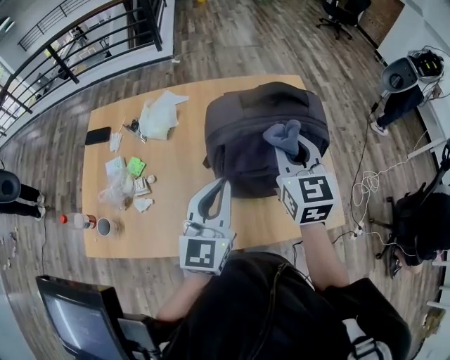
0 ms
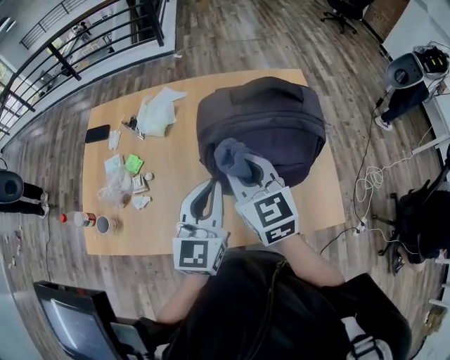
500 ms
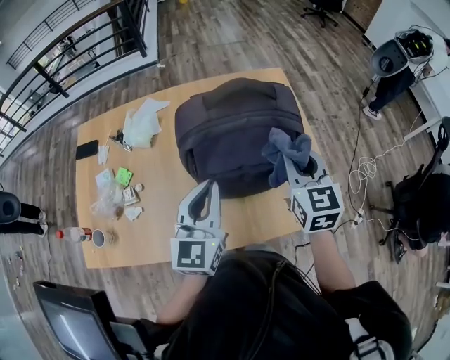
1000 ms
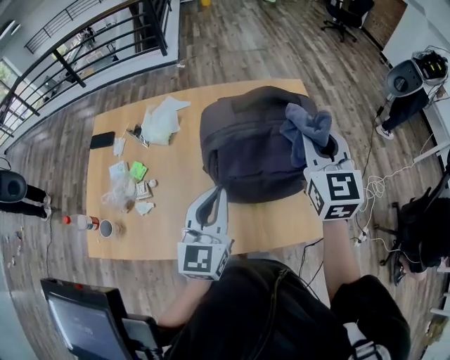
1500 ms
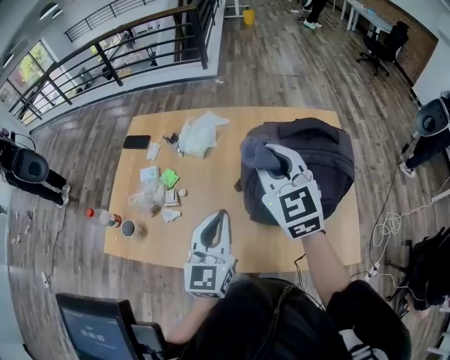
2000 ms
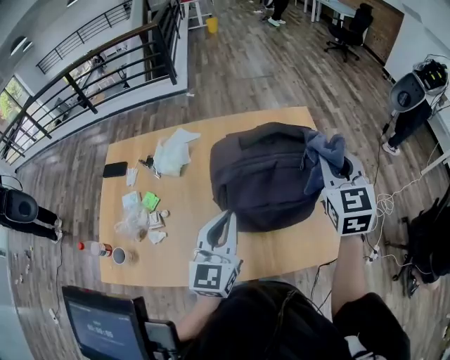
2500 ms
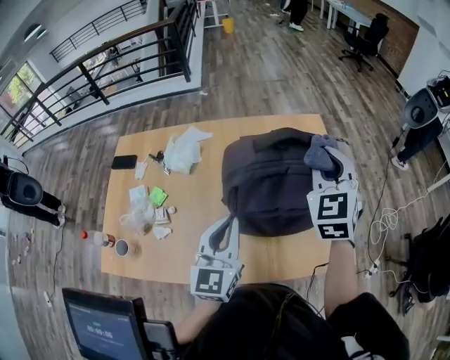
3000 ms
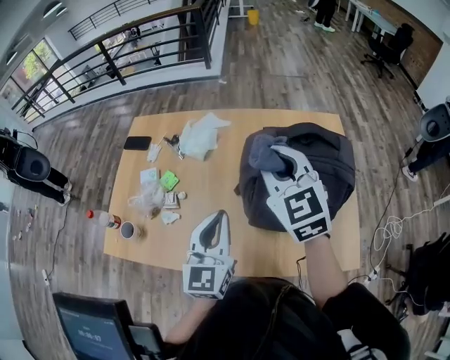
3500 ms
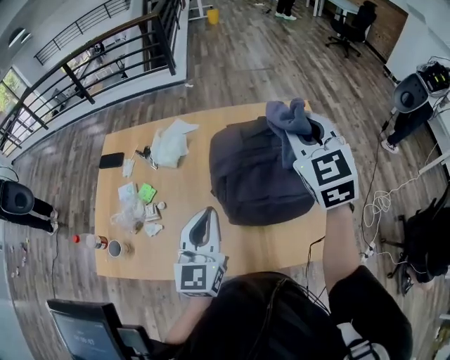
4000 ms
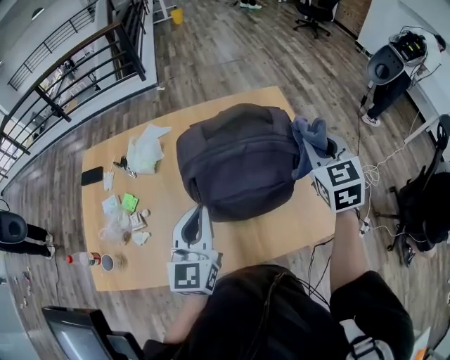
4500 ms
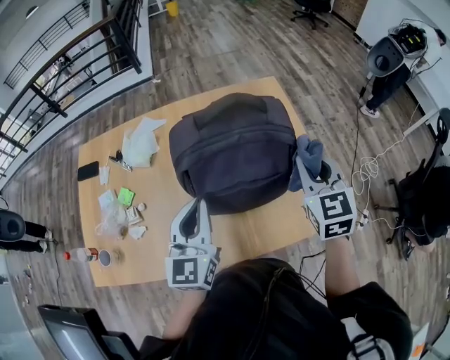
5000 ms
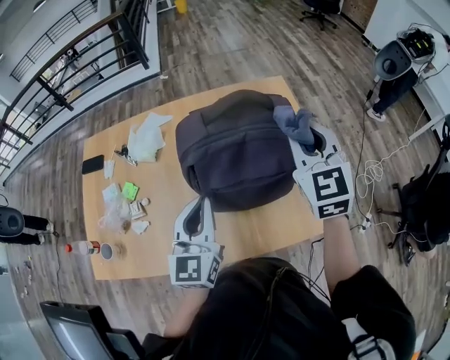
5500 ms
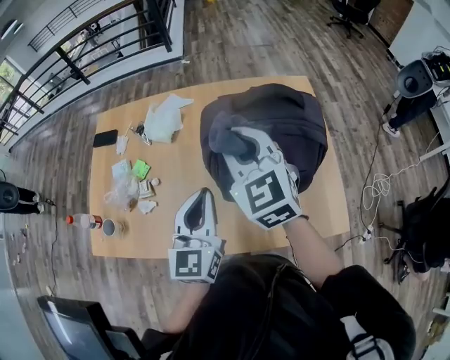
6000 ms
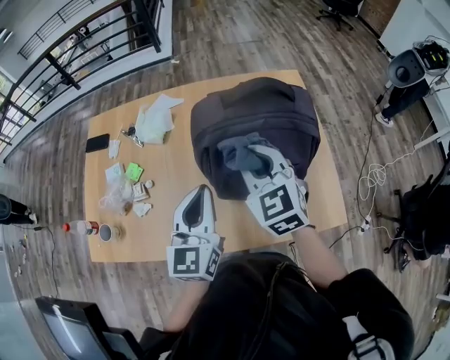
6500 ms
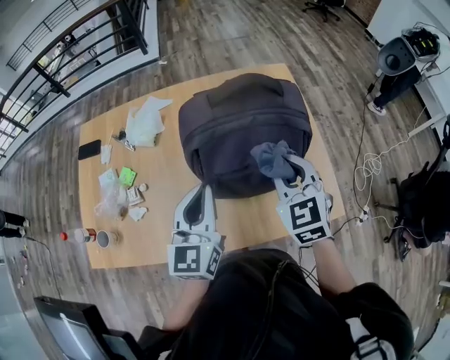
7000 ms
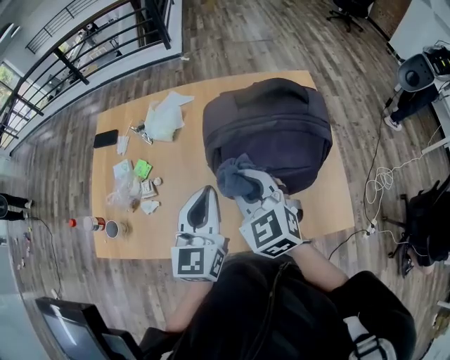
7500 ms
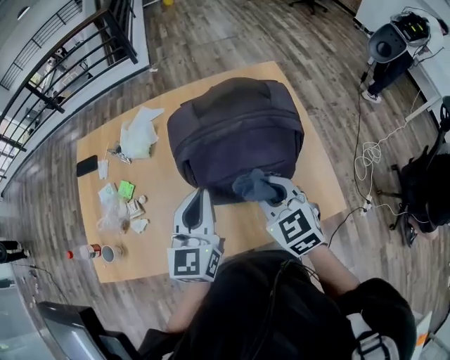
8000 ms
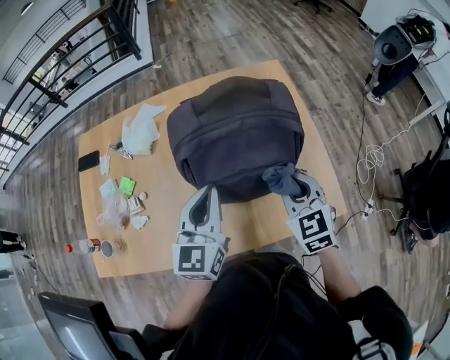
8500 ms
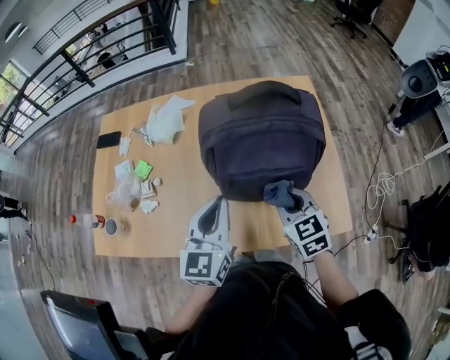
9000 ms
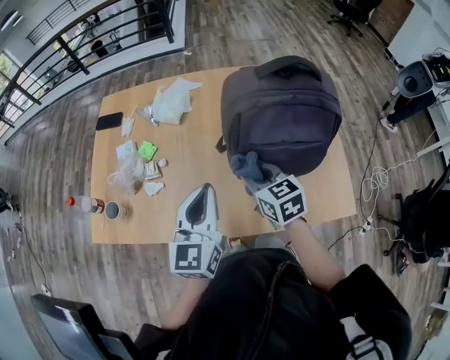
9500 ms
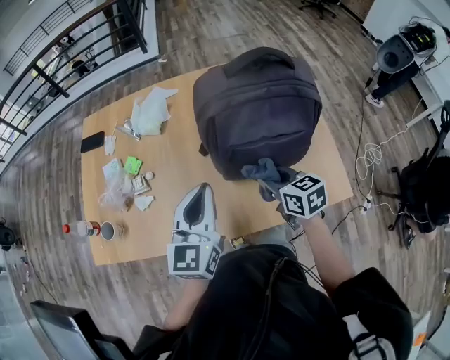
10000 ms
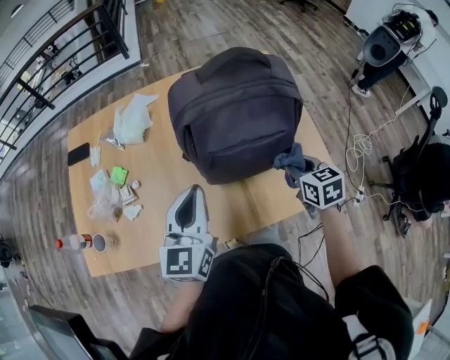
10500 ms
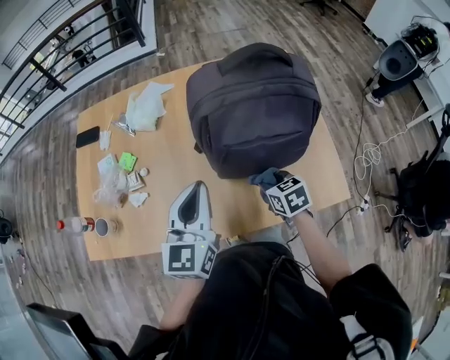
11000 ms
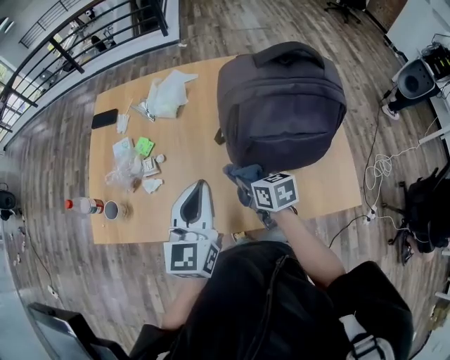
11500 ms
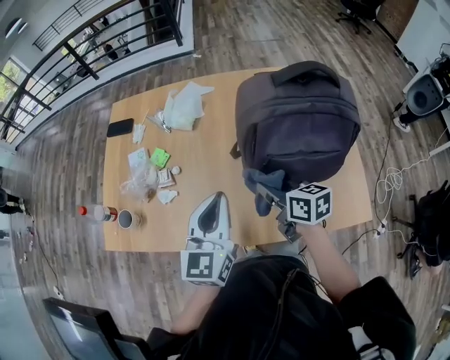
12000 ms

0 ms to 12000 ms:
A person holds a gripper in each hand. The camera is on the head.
0 ms to 2000 ms: The right gripper swings left and right, approximately 25 cm each way, with 2 reversals, and rotates approximately 30 degrees. Meanwhile the left gripper goes some 5 cm to the left.
2000 ms to 4000 ms: The right gripper swings left and right, some 25 cm each way, with 2 reversals.
4000 ms to 6000 ms: The right gripper heads to the left, backward and downward, covering some 15 cm.
6000 ms to 8000 ms: The left gripper changes place by approximately 5 cm. Meanwhile the right gripper moves left and right over roughly 15 cm, changing direction 2 times.
8000 ms to 10000 ms: The left gripper is displaced to the left and backward by roughly 10 cm; the right gripper swings left and right, roughly 20 cm each way, with 2 reversals, and rotates about 30 degrees.
10000 ms to 12000 ms: The right gripper is displaced to the left by some 10 cm.

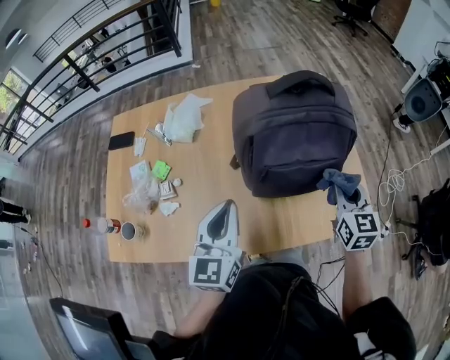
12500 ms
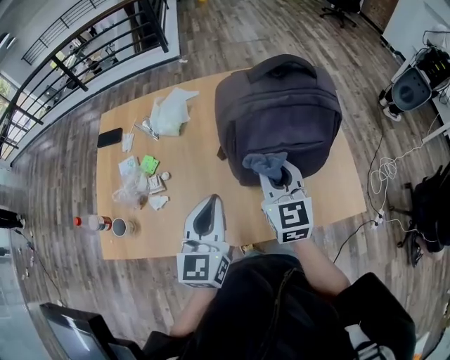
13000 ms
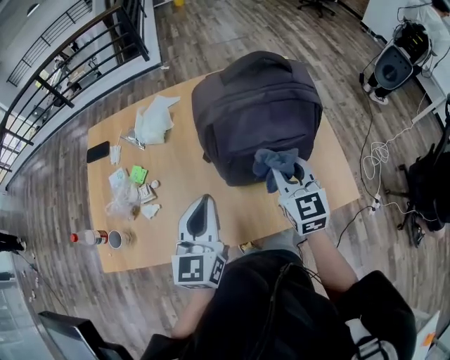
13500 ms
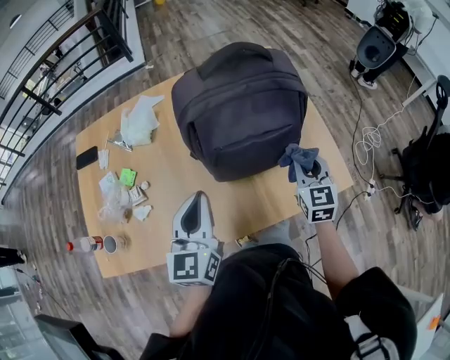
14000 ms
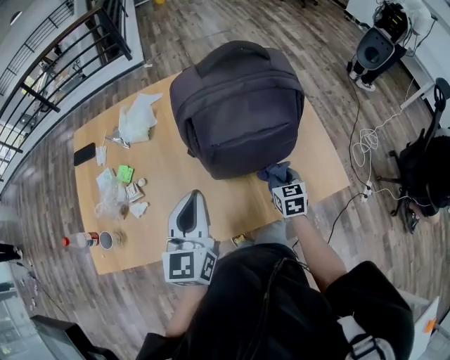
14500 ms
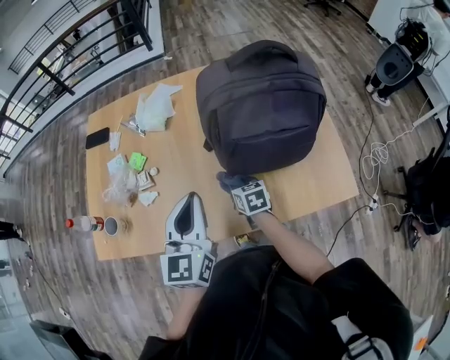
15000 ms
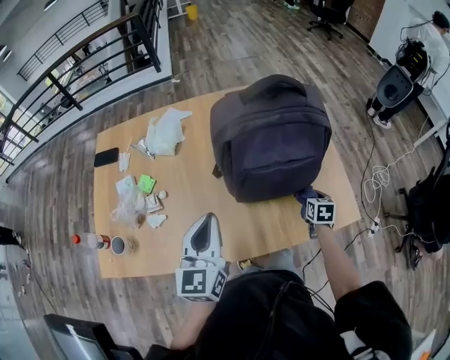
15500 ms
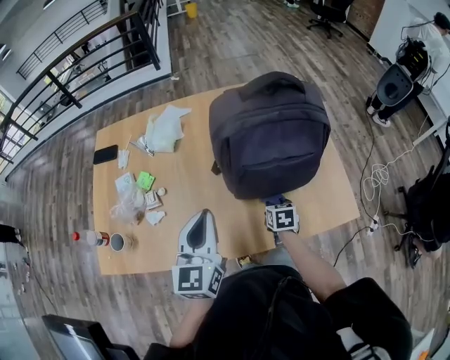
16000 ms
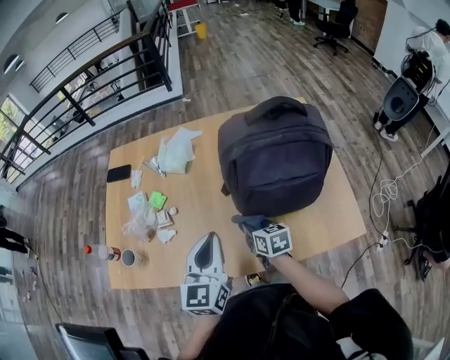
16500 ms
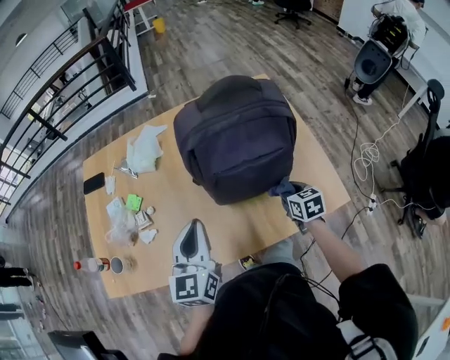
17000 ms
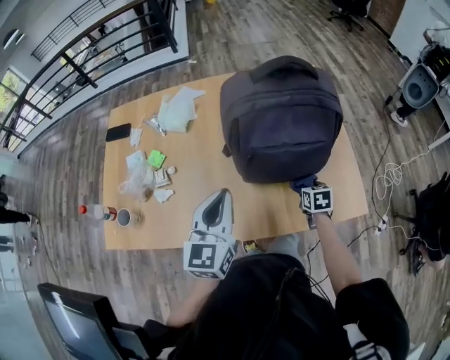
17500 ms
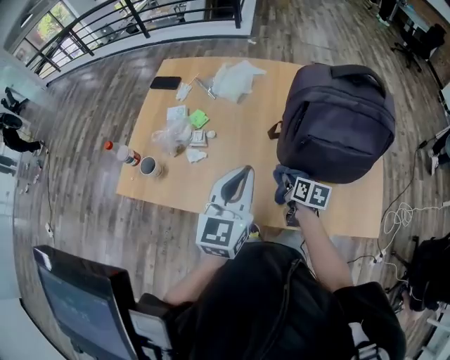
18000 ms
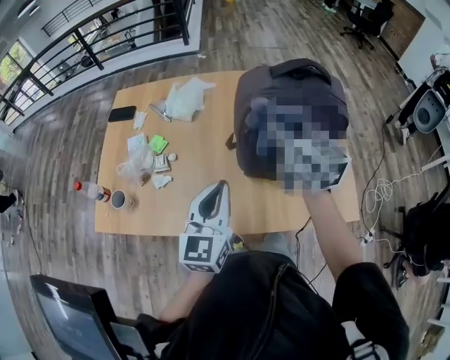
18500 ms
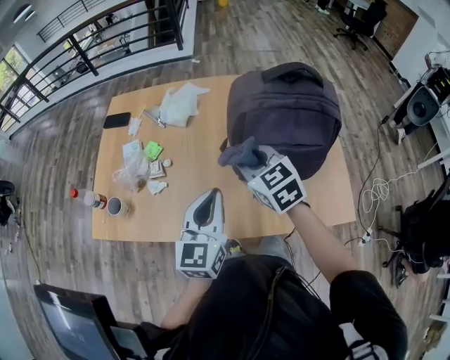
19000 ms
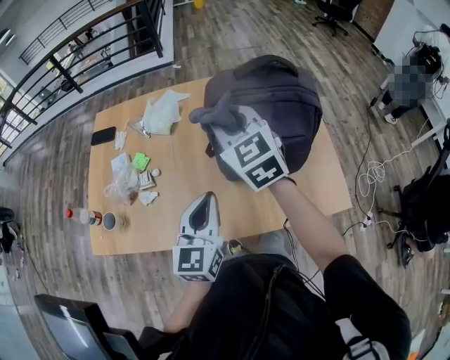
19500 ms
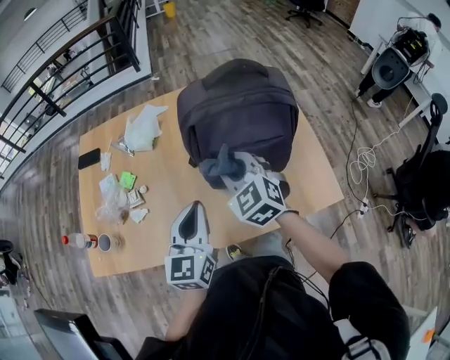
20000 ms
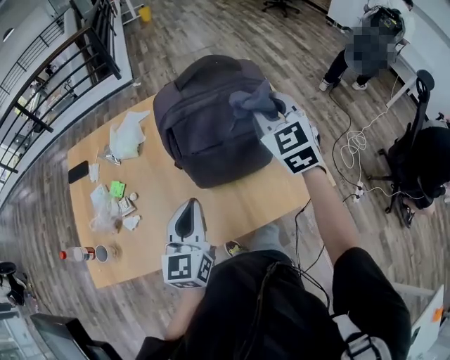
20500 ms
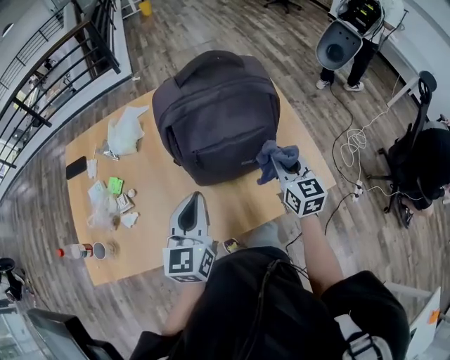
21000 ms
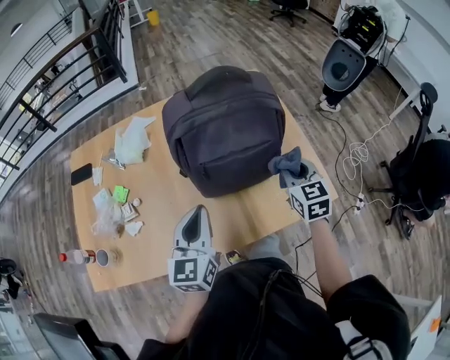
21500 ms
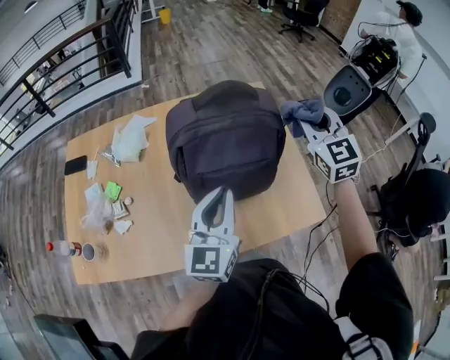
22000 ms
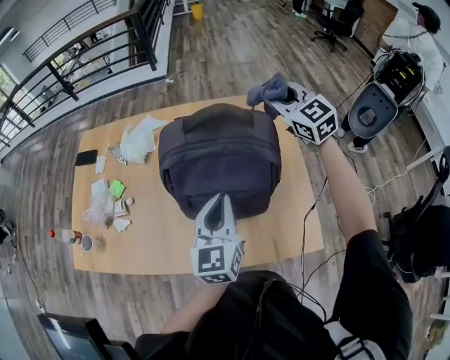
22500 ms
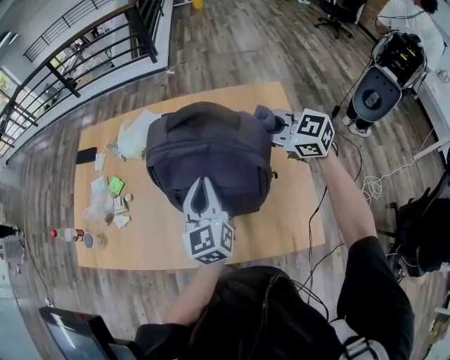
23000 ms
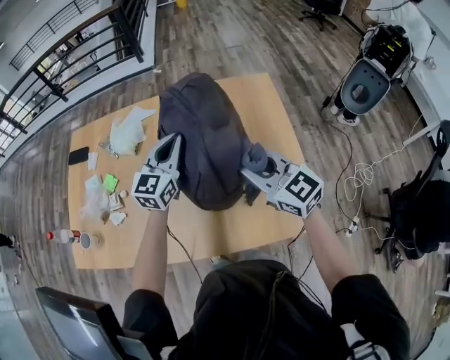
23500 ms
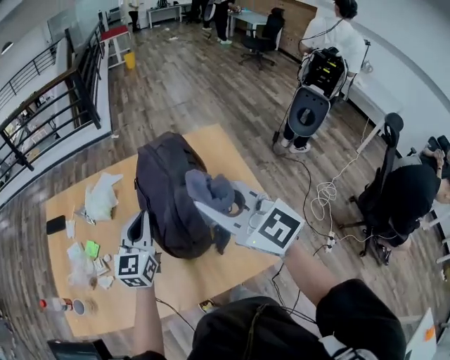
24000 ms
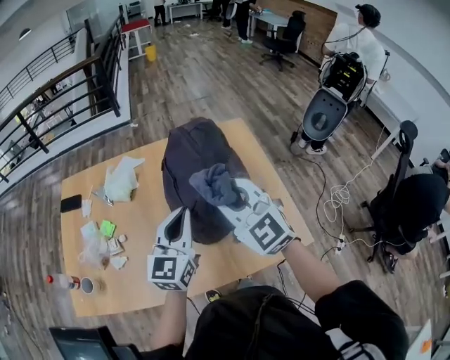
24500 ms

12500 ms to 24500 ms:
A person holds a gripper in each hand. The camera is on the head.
12500 ms to 14500 ms: The right gripper goes about 20 cm downward.
14500 ms to 16500 ms: The left gripper shifts by approximately 5 cm. The right gripper swings left and right, about 30 cm each way, with 2 reversals, and turns by about 30 degrees.
16500 ms to 18500 ms: The right gripper moves upward, about 25 cm, and rotates some 30 degrees.
18500 ms to 20500 ms: The right gripper is displaced to the right by roughly 15 cm, and changes its angle by about 40 degrees; the left gripper is displaced to the right by some 5 cm.
20500 ms to 22500 ms: The left gripper moves some 15 cm, while the right gripper goes downward and returns, roughly 15 cm each way, and swivels roughly 30 degrees.
22500 ms to 24500 ms: The left gripper turns by about 20 degrees. Meanwhile the right gripper swings up and down, about 15 cm each way, with 2 reversals.

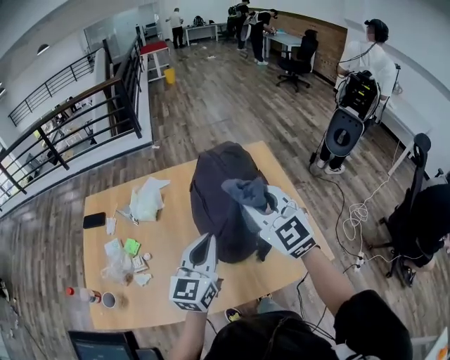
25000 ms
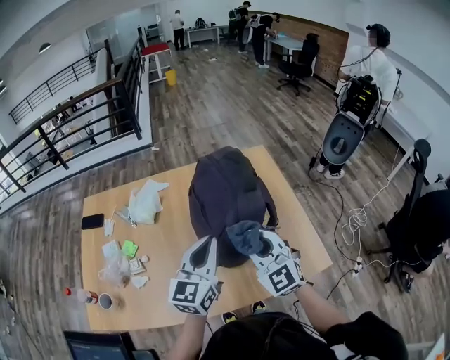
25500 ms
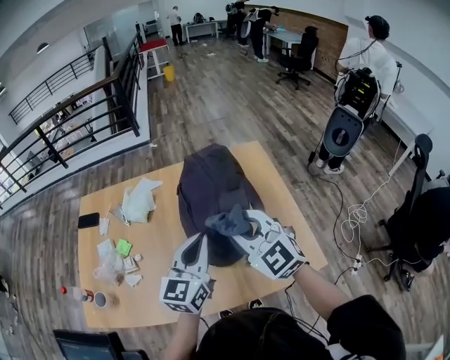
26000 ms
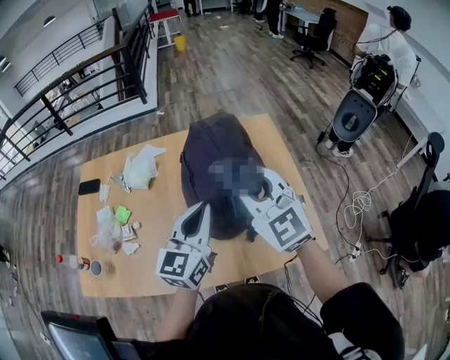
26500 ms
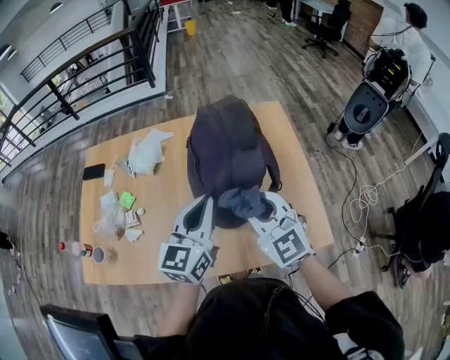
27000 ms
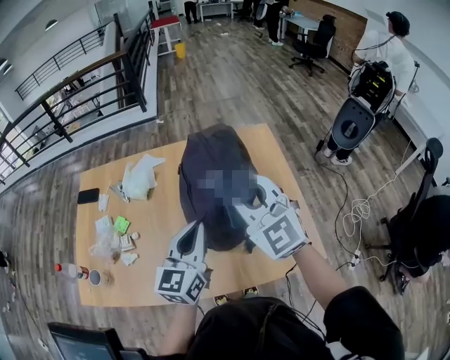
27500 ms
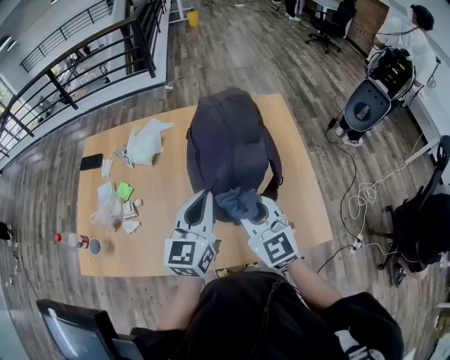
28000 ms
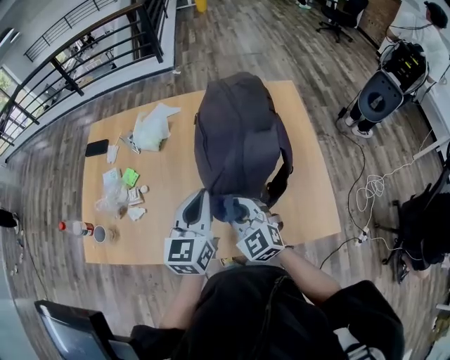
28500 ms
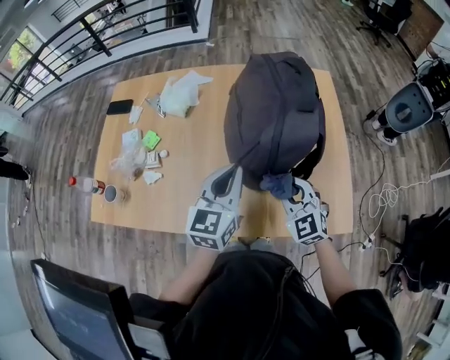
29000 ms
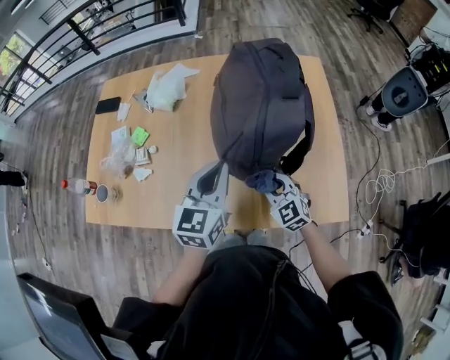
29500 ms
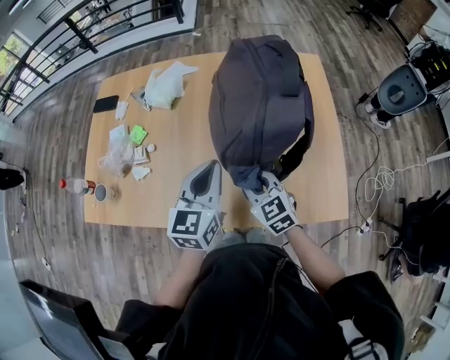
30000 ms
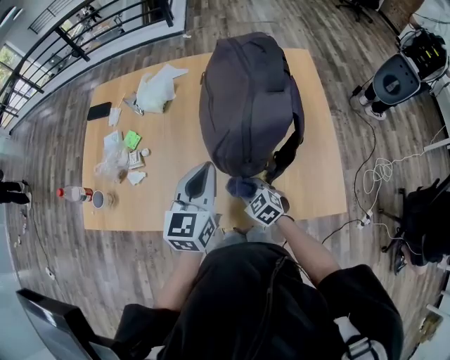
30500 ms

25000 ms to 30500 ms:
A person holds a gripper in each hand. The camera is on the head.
25000 ms to 27000 ms: The right gripper goes up and down, about 10 cm each way, reversing 2 times.
27000 ms to 28500 ms: The left gripper is displaced downward by about 5 cm. Meanwhile the right gripper heads downward and to the left, covering approximately 15 cm.
28500 ms to 30500 ms: The right gripper moves up and down over approximately 20 cm, changing direction 2 times, and rotates some 30 degrees.
